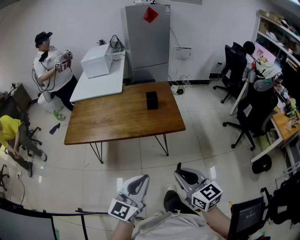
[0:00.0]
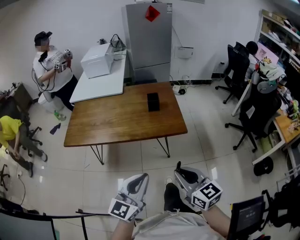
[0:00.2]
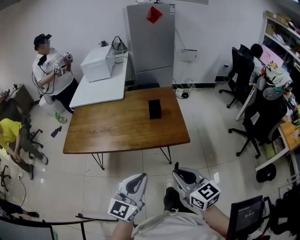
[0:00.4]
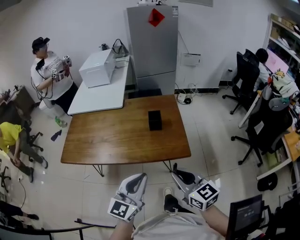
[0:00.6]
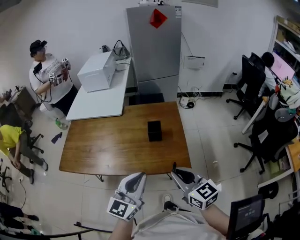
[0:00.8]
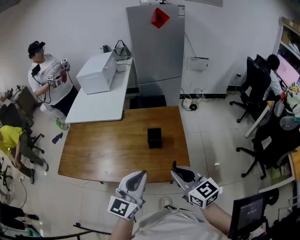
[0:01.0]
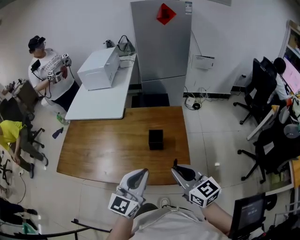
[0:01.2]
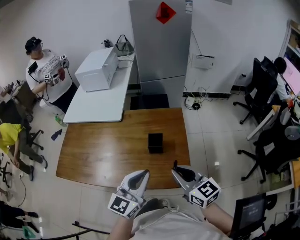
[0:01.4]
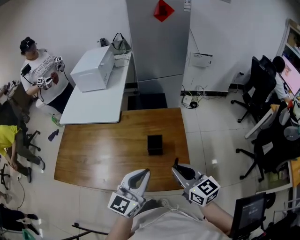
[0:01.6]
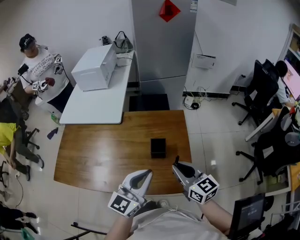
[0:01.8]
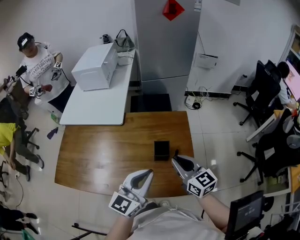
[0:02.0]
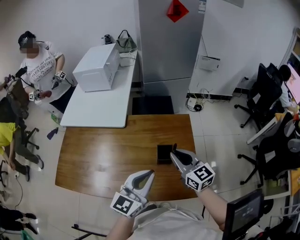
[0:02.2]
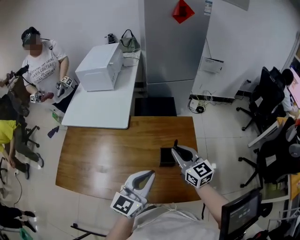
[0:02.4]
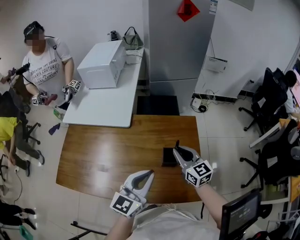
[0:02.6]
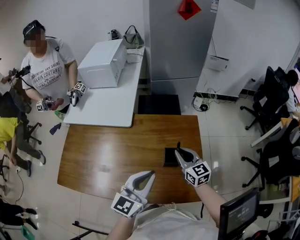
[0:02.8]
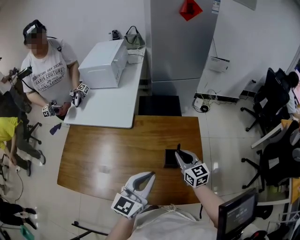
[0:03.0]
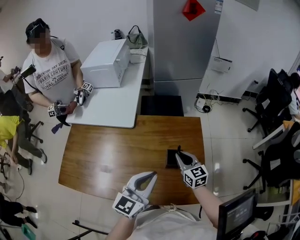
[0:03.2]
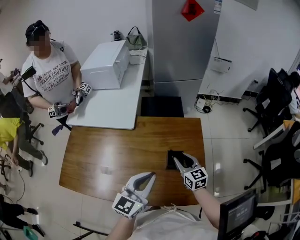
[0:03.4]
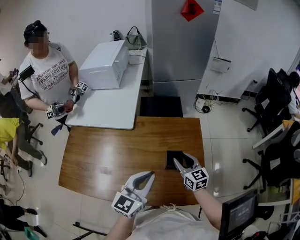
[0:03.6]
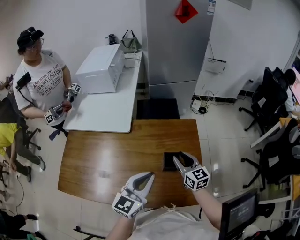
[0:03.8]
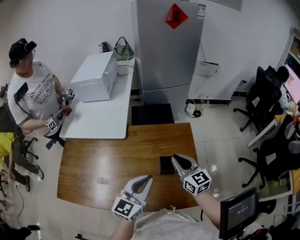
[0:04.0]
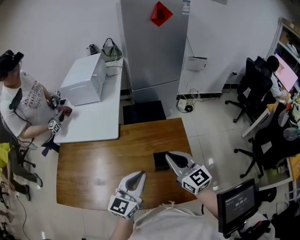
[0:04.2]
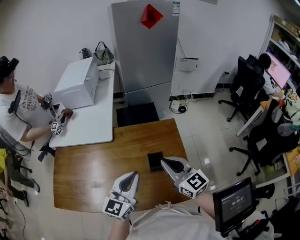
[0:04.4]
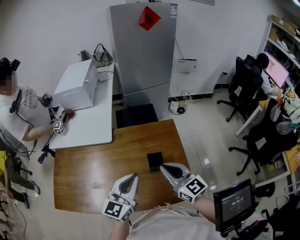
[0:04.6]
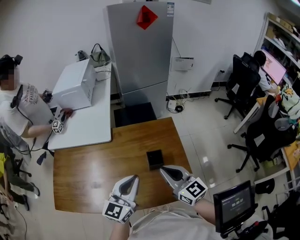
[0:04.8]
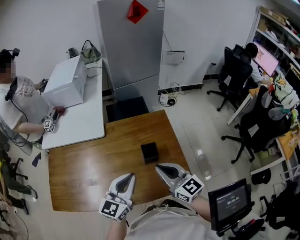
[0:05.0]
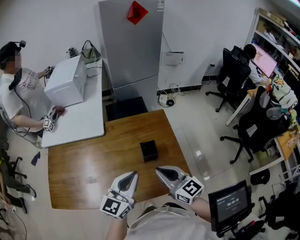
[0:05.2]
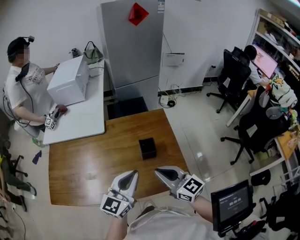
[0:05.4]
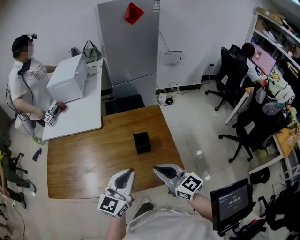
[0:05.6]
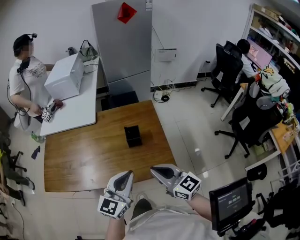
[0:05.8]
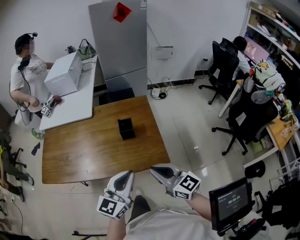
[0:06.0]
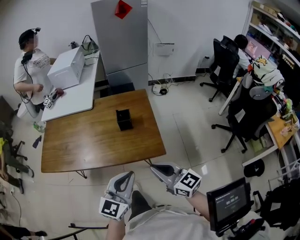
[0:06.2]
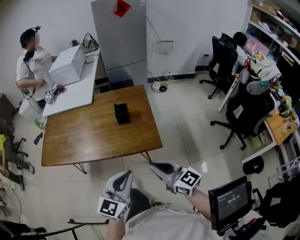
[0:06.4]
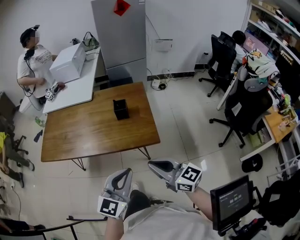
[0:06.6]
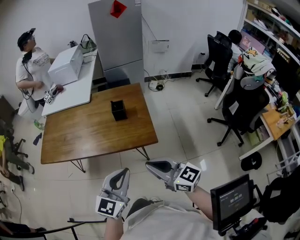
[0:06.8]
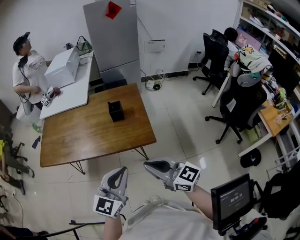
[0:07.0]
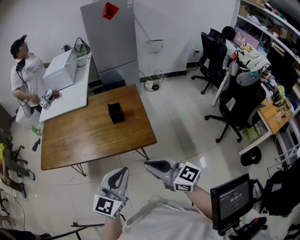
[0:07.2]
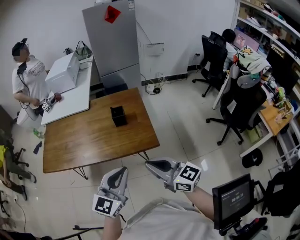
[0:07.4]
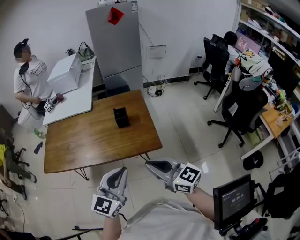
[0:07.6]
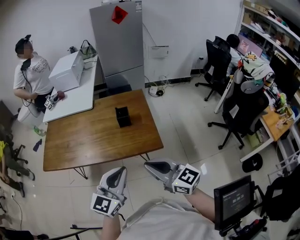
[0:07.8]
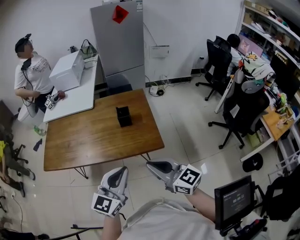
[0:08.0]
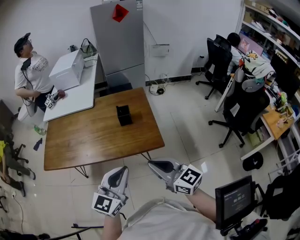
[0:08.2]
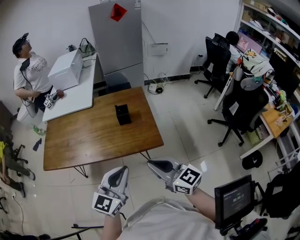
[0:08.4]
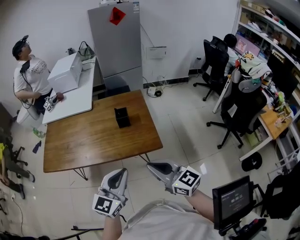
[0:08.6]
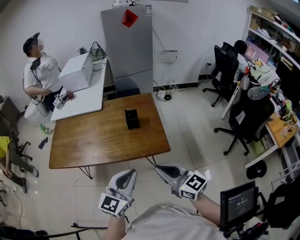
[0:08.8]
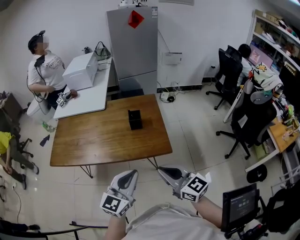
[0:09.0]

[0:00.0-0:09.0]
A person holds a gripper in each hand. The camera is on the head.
0:00.0 to 0:01.6: The two grippers travel together, forward, approximately 40 cm.
0:01.6 to 0:03.0: The left gripper shifts some 10 cm forward and to the left; the right gripper travels forward and downward by approximately 20 cm.
0:03.0 to 0:04.4: The right gripper is displaced upward and backward by approximately 15 cm, and opens and closes again.
0:04.4 to 0:06.0: The right gripper is displaced backward by roughly 25 cm. The left gripper is displaced backward and to the right by about 25 cm.
0:06.0 to 0:07.6: The left gripper heads backward, covering about 10 cm, while the right gripper moves backward and upward, some 10 cm.
0:07.6 to 0:09.0: The grippers move only a little.

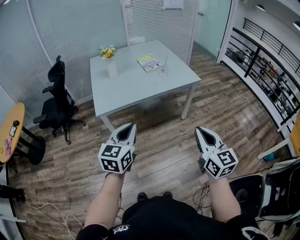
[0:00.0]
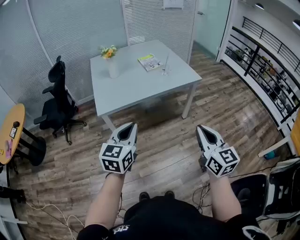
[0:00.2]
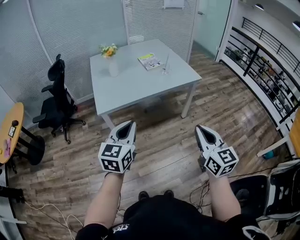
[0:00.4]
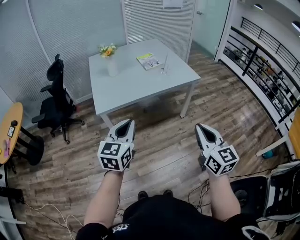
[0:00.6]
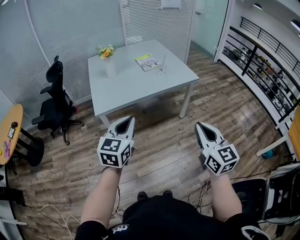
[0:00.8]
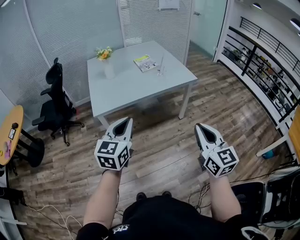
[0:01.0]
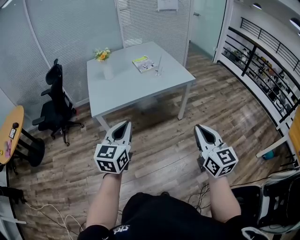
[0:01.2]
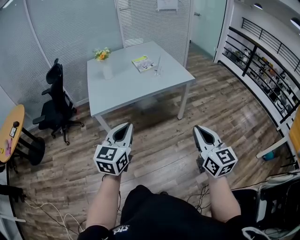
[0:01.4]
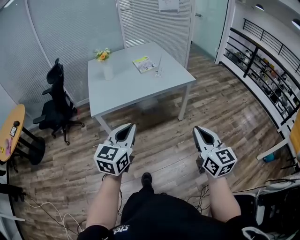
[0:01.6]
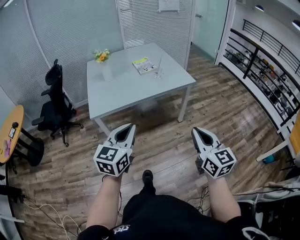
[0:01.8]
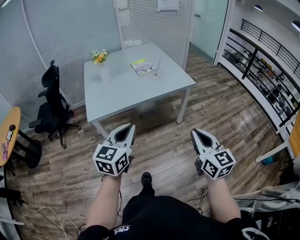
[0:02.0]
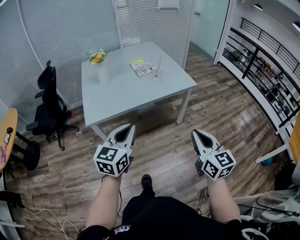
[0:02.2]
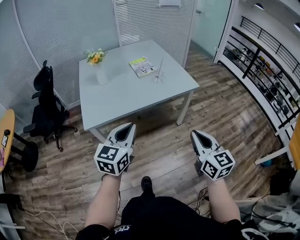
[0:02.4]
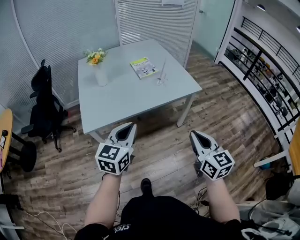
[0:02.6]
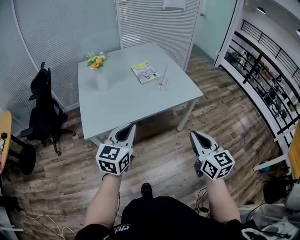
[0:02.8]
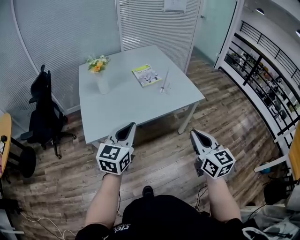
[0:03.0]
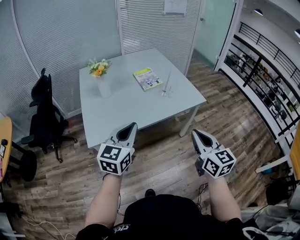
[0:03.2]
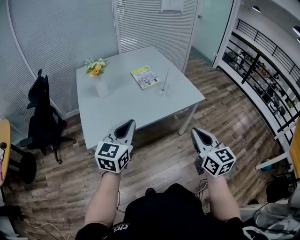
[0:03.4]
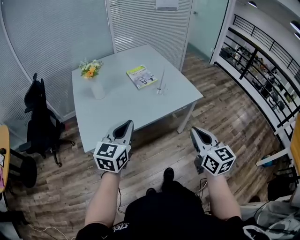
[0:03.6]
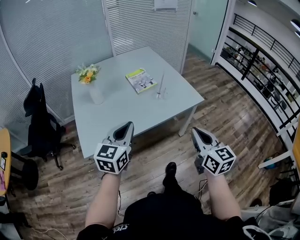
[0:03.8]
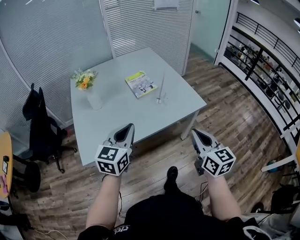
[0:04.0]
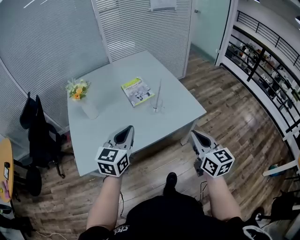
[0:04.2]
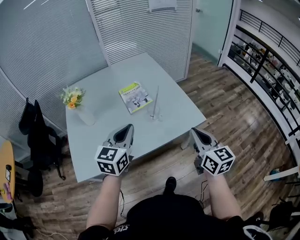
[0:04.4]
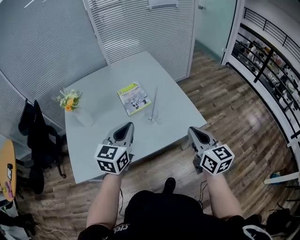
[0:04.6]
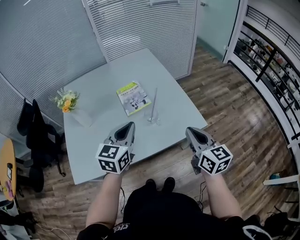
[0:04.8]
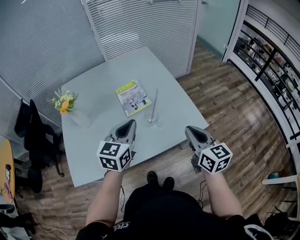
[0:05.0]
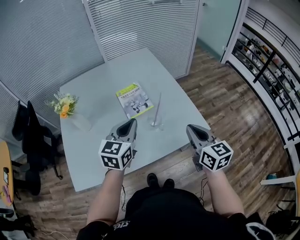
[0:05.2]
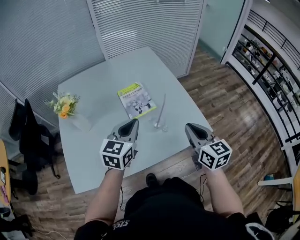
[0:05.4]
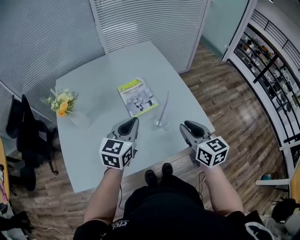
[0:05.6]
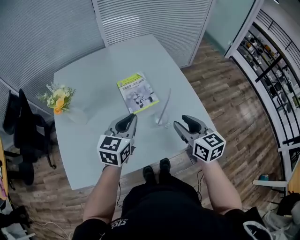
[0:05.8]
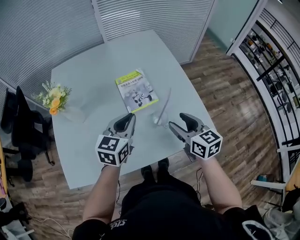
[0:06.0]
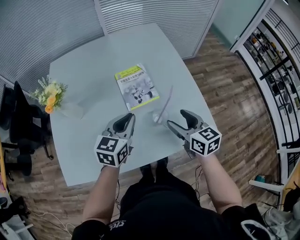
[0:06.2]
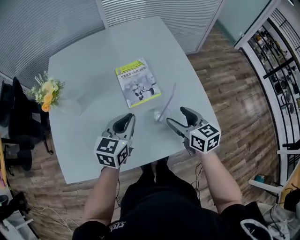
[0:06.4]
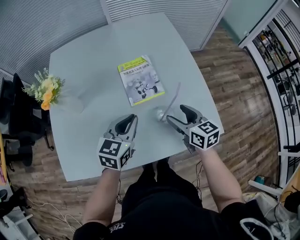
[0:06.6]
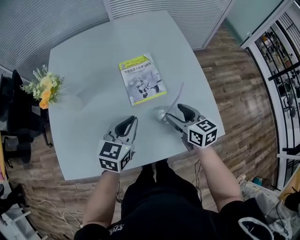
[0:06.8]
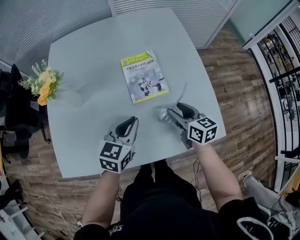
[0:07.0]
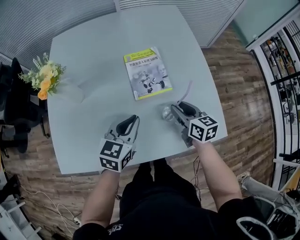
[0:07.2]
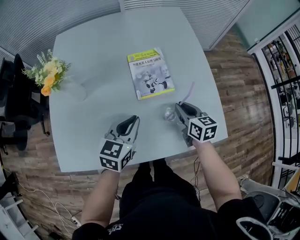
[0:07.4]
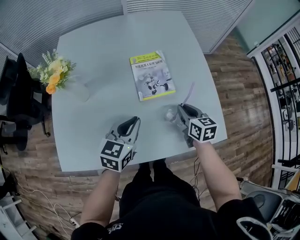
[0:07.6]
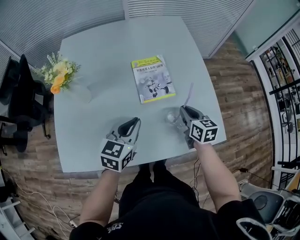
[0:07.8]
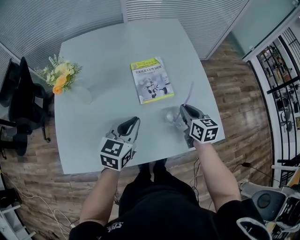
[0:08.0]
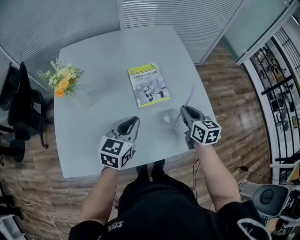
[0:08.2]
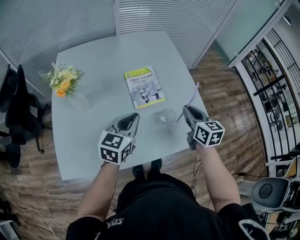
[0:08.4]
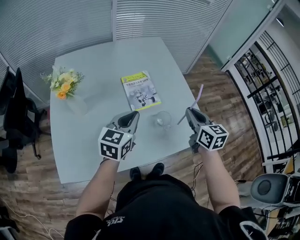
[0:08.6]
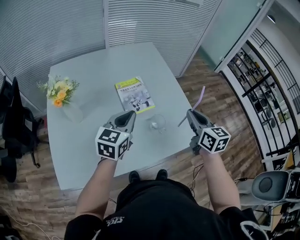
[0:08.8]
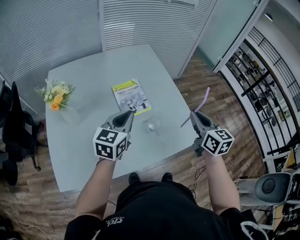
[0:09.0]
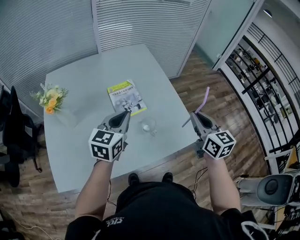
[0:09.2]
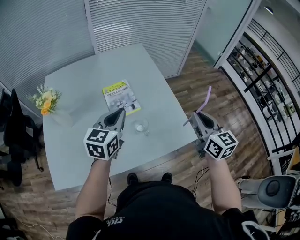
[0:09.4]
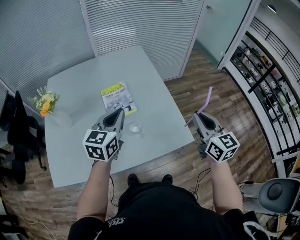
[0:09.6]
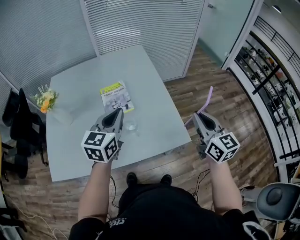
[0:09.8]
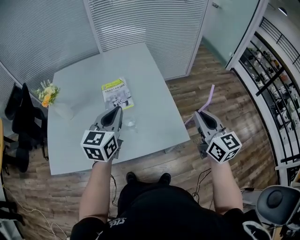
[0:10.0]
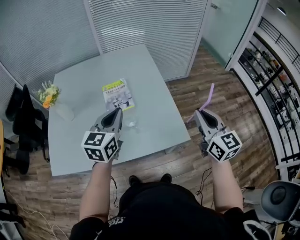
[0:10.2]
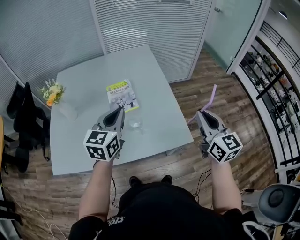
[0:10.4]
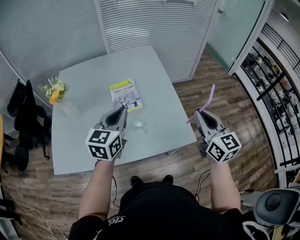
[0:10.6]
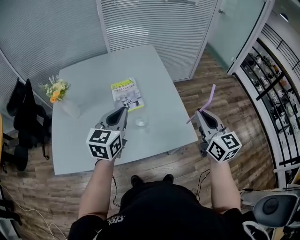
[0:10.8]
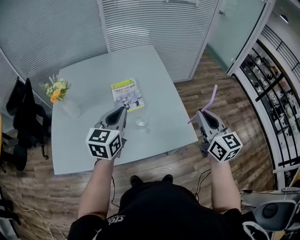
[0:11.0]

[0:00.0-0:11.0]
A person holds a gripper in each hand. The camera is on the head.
0:00.0 to 0:01.6: The two grippers go roughly 5 cm to the right.
0:01.6 to 0:03.2: The grippers both shift forward by roughly 25 cm.
0:03.2 to 0:04.8: The right gripper moves forward, roughly 35 cm; the left gripper shifts roughly 35 cm forward and to the right.
0:04.8 to 0:06.2: Both grippers travel together forward, downward and to the left, roughly 20 cm. The right gripper turns by approximately 20 degrees, and opens up.
0:06.2 to 0:07.8: The right gripper is displaced downward and forward by approximately 10 cm, and closes. The left gripper ends up some 5 cm from where it was.
0:07.8 to 0:09.4: The right gripper travels upward and to the right by about 30 cm, and rotates about 30 degrees. Meanwhile the left gripper shifts roughly 15 cm upward and to the right.
0:09.4 to 0:11.0: The right gripper goes to the right and returns, roughly 10 cm each way. The left gripper travels to the right and back again, approximately 10 cm each way.

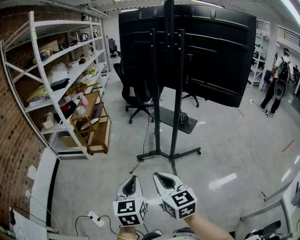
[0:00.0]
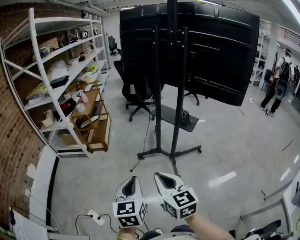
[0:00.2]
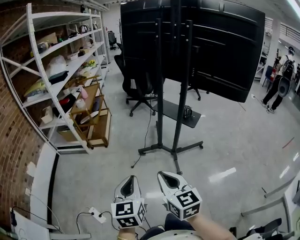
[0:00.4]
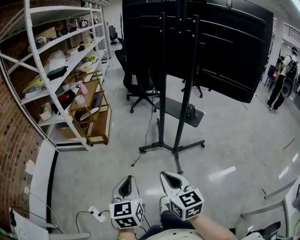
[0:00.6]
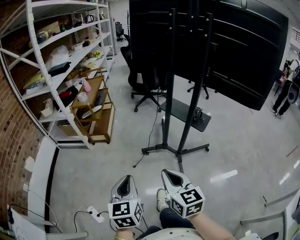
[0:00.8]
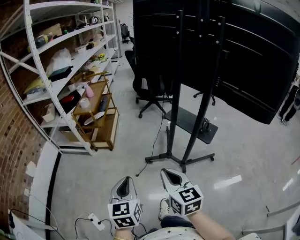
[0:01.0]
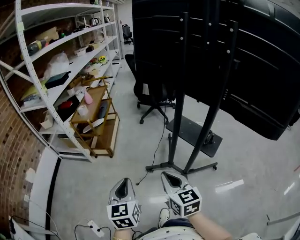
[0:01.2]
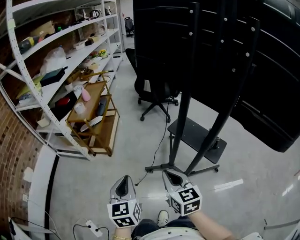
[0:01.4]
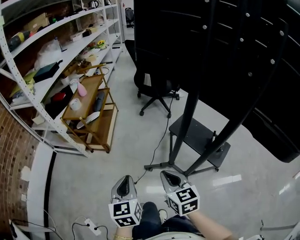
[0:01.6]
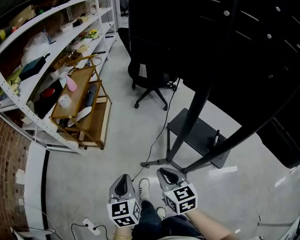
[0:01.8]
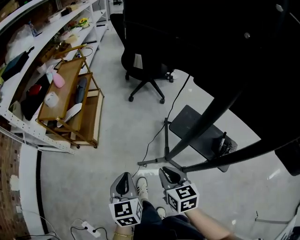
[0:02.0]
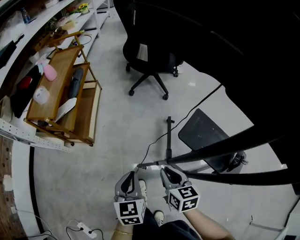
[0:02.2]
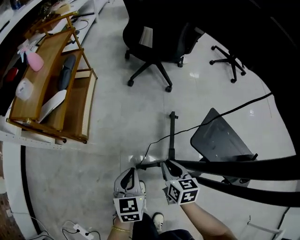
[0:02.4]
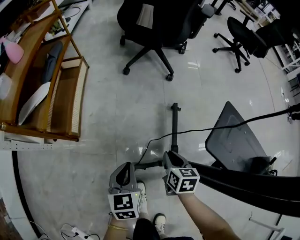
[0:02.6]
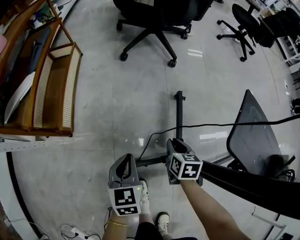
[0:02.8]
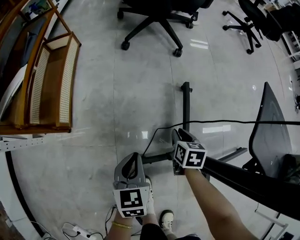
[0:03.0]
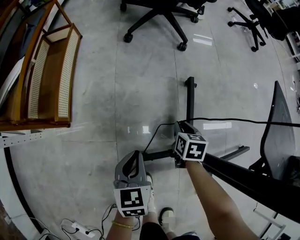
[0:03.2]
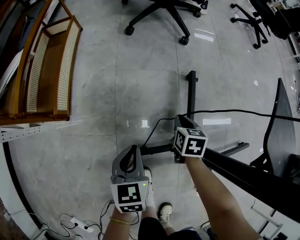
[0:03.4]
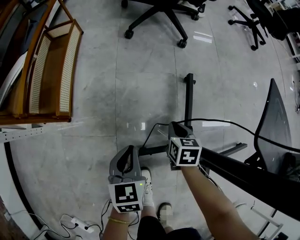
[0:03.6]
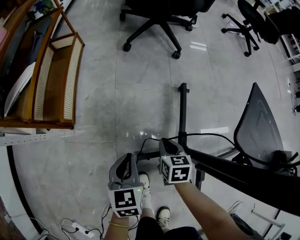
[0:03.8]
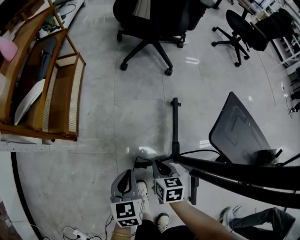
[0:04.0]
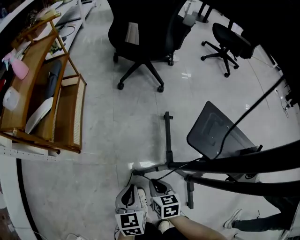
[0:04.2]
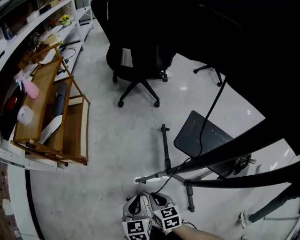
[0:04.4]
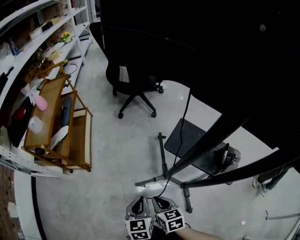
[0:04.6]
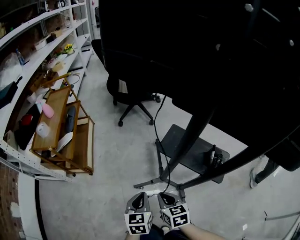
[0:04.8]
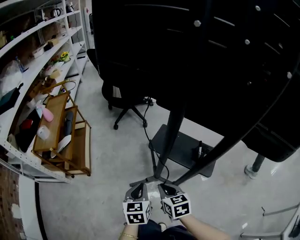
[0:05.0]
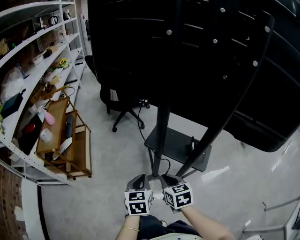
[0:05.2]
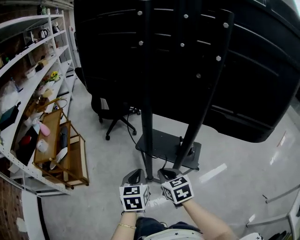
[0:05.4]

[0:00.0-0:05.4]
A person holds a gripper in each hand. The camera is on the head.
0:00.0 to 0:01.4: The two grippers go about 40 cm forward.
0:01.4 to 0:02.8: Both grippers are carried forward, some 50 cm. The two grippers go approximately 60 cm downward. The right gripper angles its fingers downward, by approximately 30 degrees. Meanwhile the left gripper rotates about 20 degrees.
0:02.8 to 0:04.0: The left gripper moves backward, roughly 5 cm. Meanwhile the right gripper goes some 10 cm backward and to the left.
0:04.0 to 0:05.4: The right gripper travels upward and backward by roughly 60 cm, and turns by about 20 degrees. Meanwhile the left gripper goes about 50 cm upward, to the right and backward, and rotates some 20 degrees.
